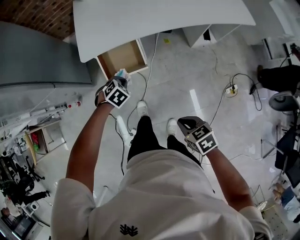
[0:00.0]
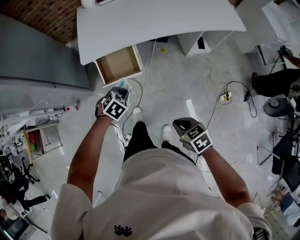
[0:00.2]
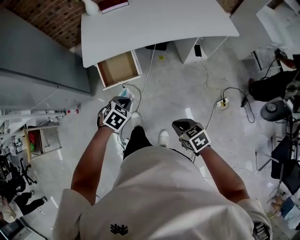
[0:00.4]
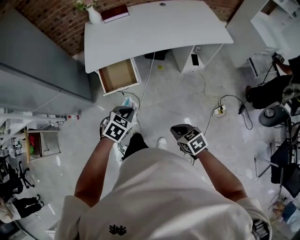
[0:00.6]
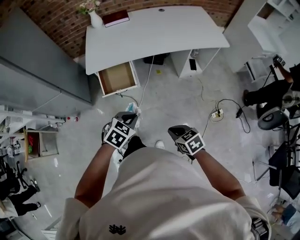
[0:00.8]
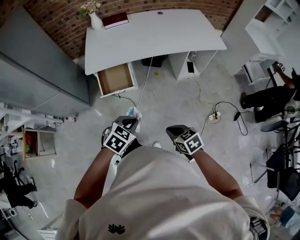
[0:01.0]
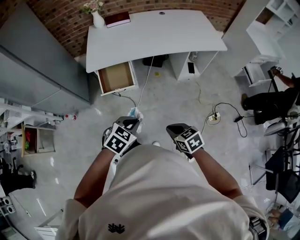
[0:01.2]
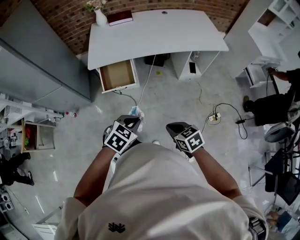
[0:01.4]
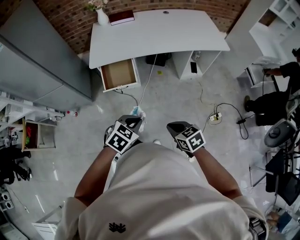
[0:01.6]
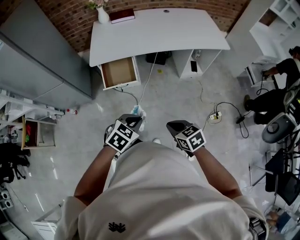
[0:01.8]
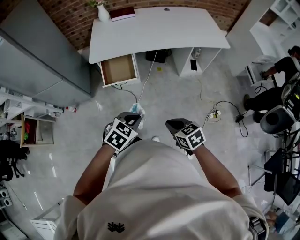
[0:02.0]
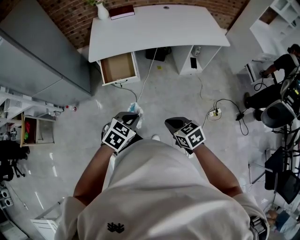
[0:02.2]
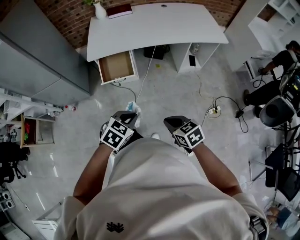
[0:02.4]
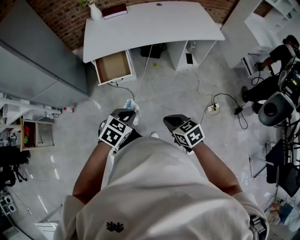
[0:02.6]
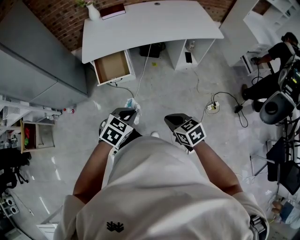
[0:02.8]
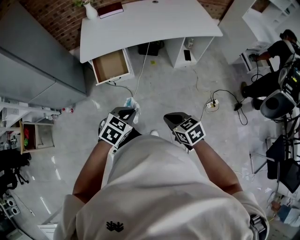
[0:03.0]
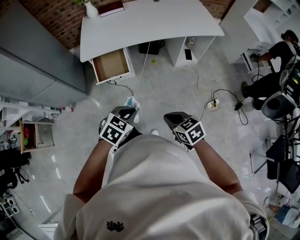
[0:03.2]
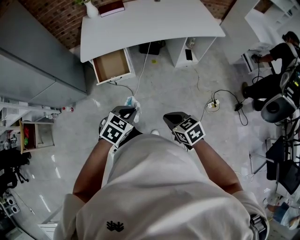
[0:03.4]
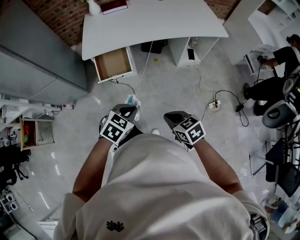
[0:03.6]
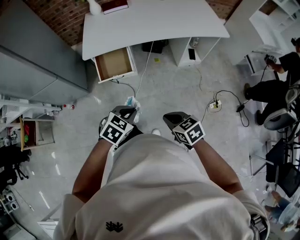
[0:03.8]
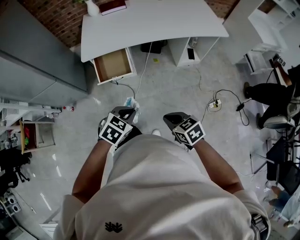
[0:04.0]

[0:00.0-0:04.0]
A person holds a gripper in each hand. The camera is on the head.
0:00.0 to 0:01.4: The right gripper is displaced backward, to the right and upward by about 20 cm, while the left gripper heads backward, upward and to the right, covering some 40 cm, and changes its angle by approximately 30 degrees.
0:01.4 to 0:02.6: The grippers stay close to where they were, moving slightly.
0:02.6 to 0:04.0: The right gripper ends up approximately 5 cm from where it was; the left gripper is displaced forward by approximately 5 cm.

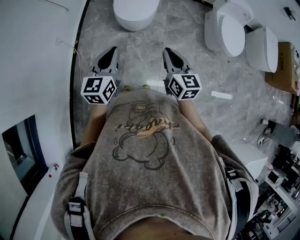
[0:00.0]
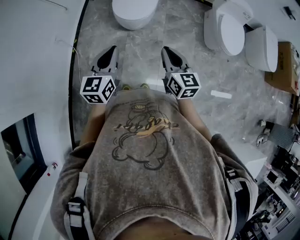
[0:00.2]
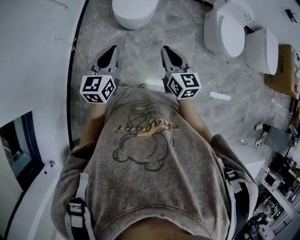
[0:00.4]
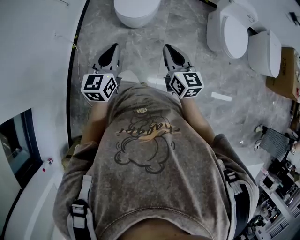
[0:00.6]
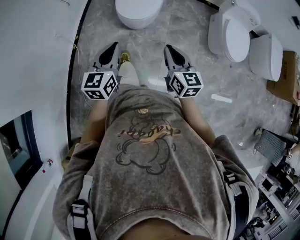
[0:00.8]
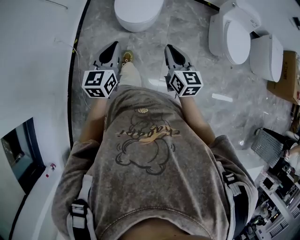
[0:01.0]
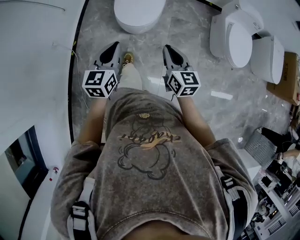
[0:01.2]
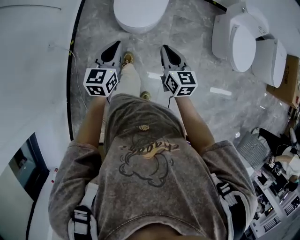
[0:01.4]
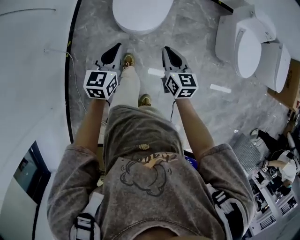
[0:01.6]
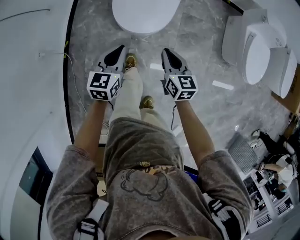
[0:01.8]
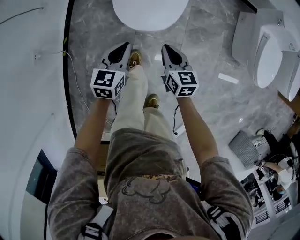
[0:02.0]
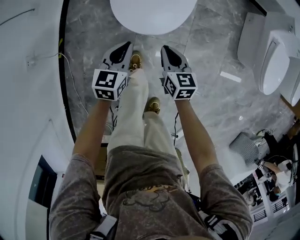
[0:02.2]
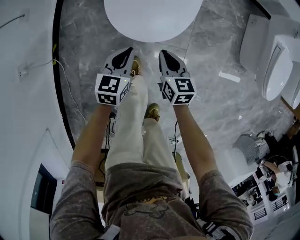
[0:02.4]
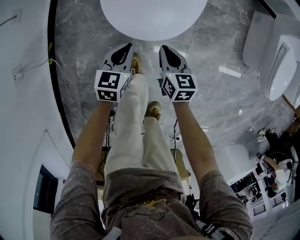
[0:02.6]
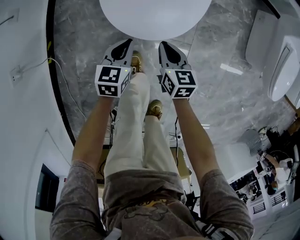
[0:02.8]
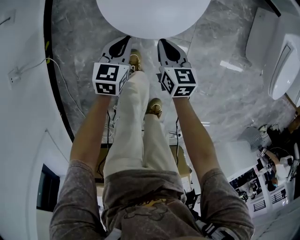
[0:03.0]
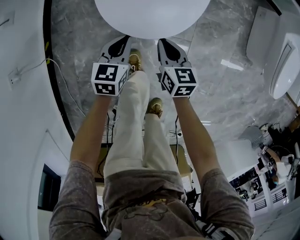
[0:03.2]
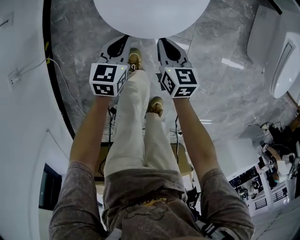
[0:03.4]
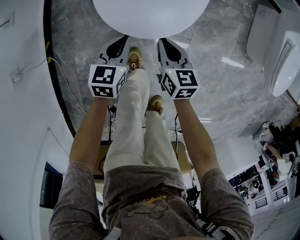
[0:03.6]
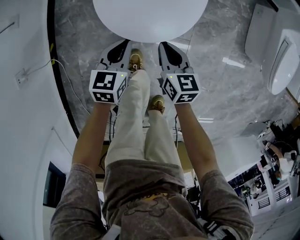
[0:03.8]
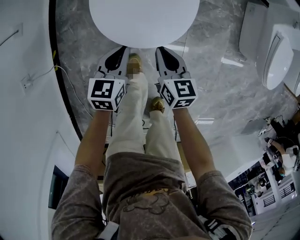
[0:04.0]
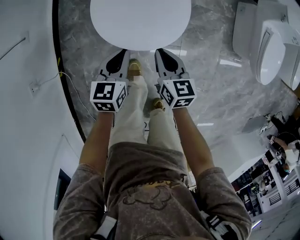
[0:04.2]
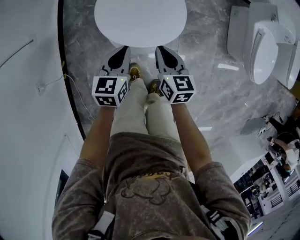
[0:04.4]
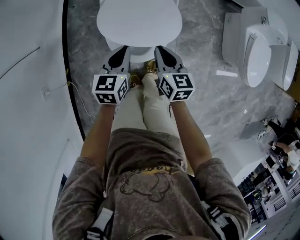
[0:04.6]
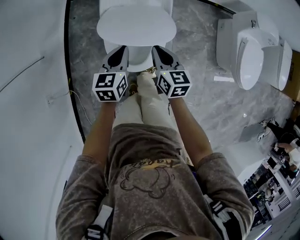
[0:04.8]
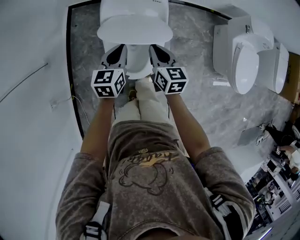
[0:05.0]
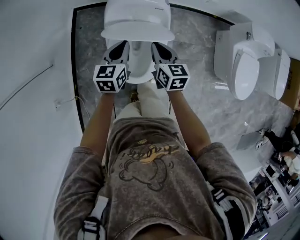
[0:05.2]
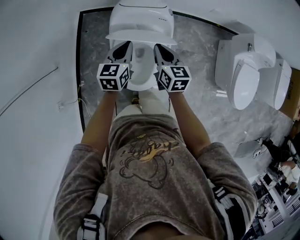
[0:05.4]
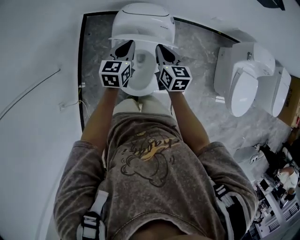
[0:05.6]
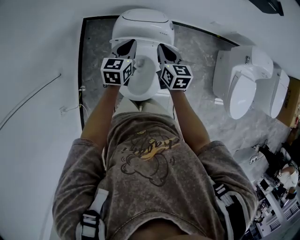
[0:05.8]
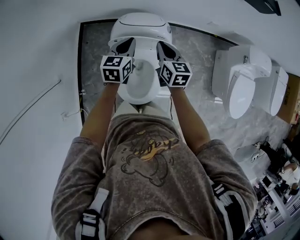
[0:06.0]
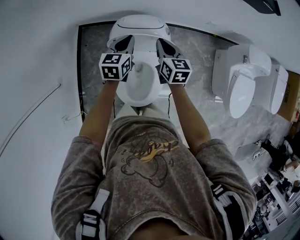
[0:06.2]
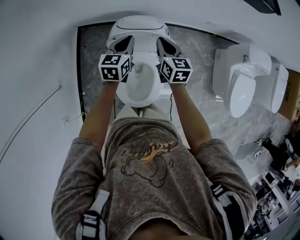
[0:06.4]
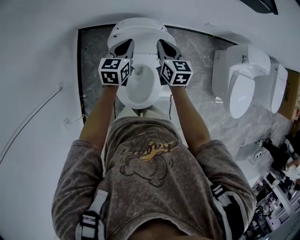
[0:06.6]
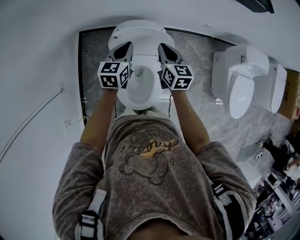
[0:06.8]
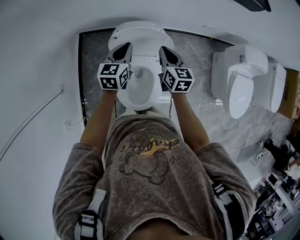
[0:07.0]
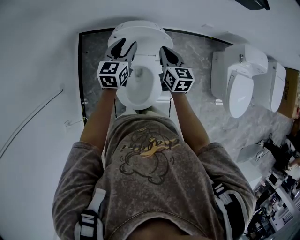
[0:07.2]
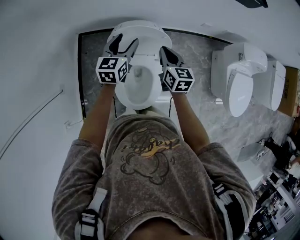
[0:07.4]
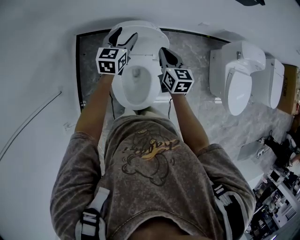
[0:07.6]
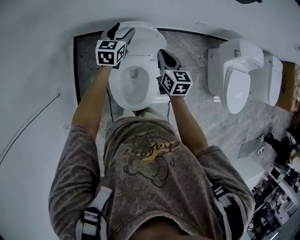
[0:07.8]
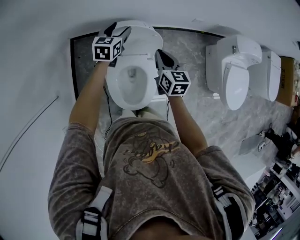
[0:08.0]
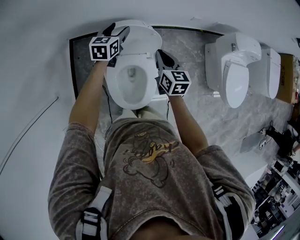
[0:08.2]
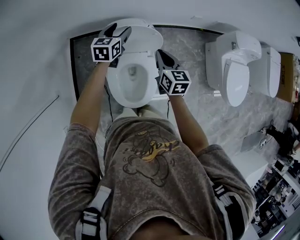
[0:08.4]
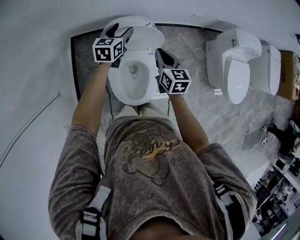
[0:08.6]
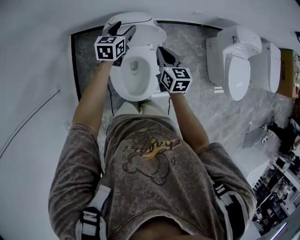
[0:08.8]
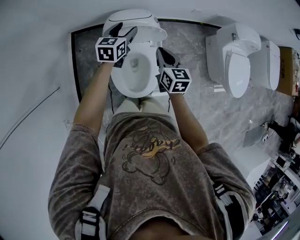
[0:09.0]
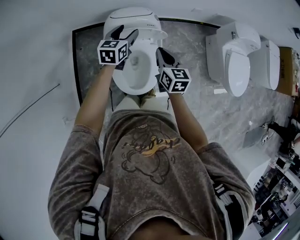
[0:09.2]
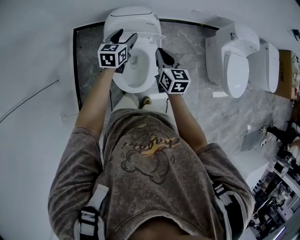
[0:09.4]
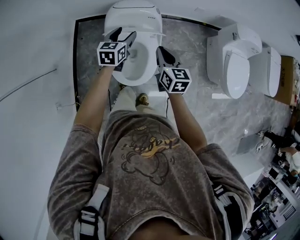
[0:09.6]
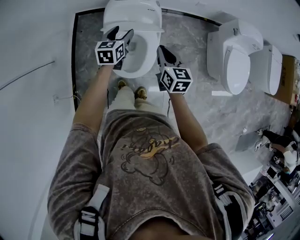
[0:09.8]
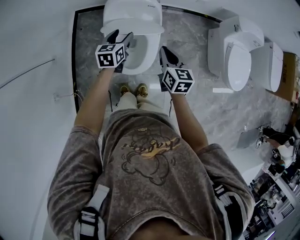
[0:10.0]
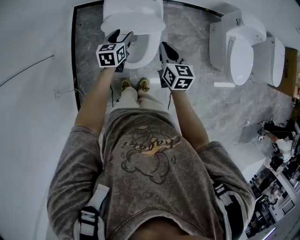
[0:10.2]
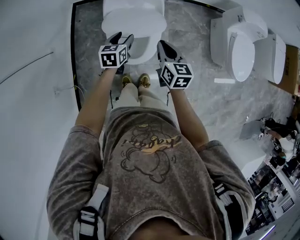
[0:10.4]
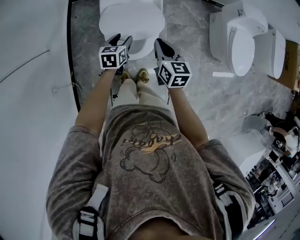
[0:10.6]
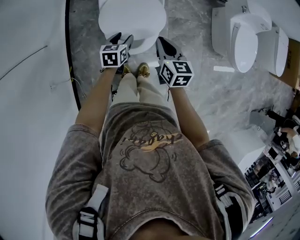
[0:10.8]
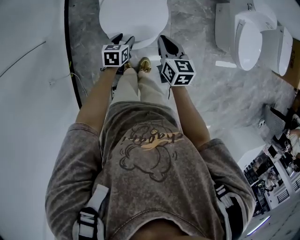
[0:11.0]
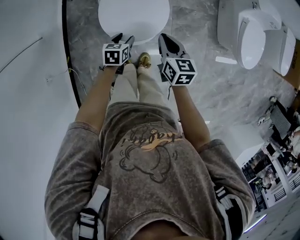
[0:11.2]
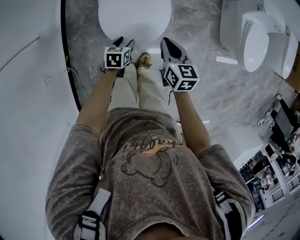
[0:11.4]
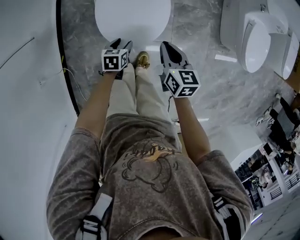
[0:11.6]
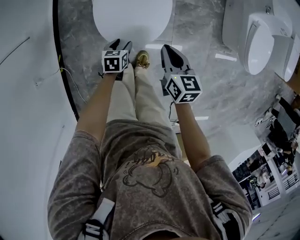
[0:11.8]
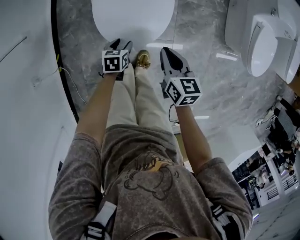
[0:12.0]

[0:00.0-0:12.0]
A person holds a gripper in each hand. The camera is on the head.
0:00.0 to 0:01.6: The grippers both shift forward and downward by approximately 30 cm.
0:01.6 to 0:03.0: The two grippers go about 35 cm downward.
0:03.0 to 0:04.4: The grippers both shift upward by roughly 25 cm.
0:04.4 to 0:06.0: The grippers both shift forward and upward by approximately 40 cm.
0:06.0 to 0:07.6: The right gripper shifts by approximately 5 cm. Meanwhile the left gripper is displaced forward by about 5 cm, and opens.
0:07.6 to 0:09.0: The right gripper is displaced backward by roughly 10 cm, while the left gripper goes approximately 5 cm backward.
0:09.0 to 0:10.4: The left gripper is displaced backward and downward by about 25 cm. The right gripper travels backward by approximately 15 cm.
0:10.4 to 0:12.0: The right gripper goes approximately 20 cm downward and backward; the left gripper is displaced downward and backward by approximately 30 cm, and turns by about 20 degrees.

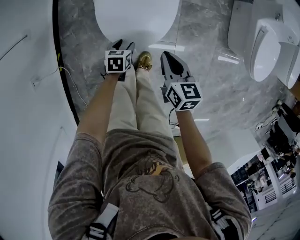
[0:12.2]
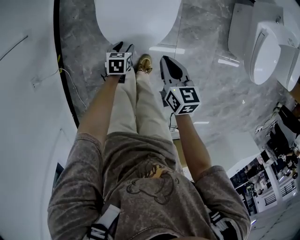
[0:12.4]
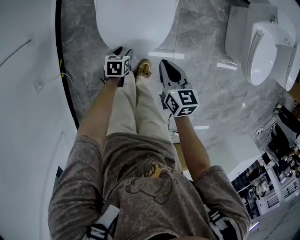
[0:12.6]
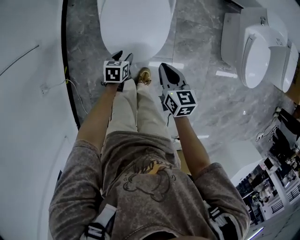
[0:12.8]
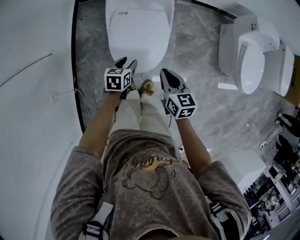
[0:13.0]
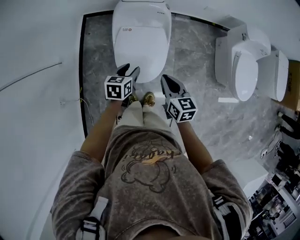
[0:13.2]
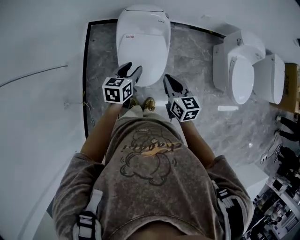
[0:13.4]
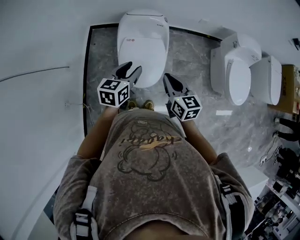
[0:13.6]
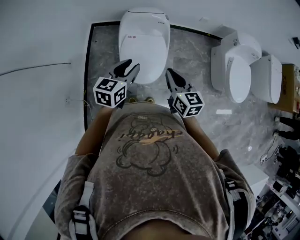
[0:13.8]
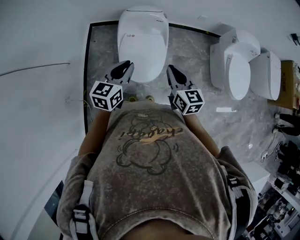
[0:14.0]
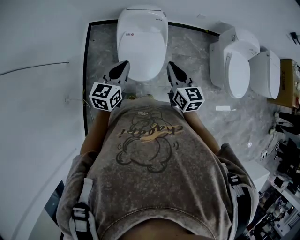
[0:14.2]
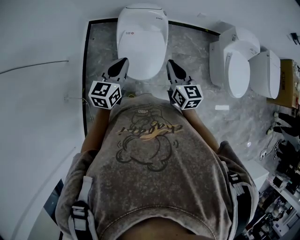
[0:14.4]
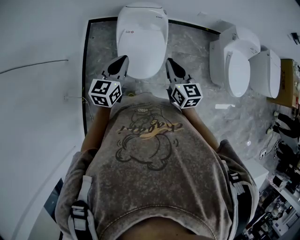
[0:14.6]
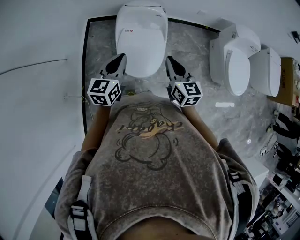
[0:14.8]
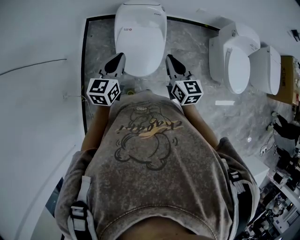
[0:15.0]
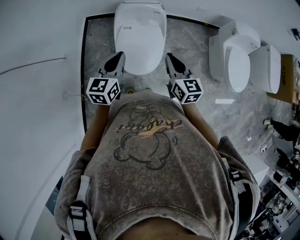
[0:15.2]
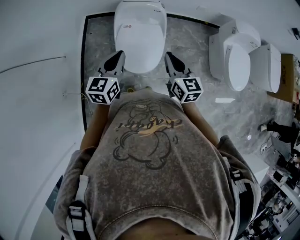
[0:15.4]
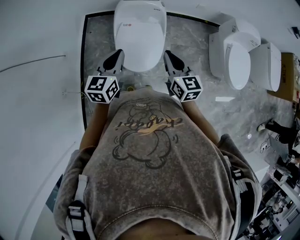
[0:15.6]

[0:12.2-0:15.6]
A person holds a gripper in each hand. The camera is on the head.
0:12.2 to 0:13.8: The left gripper heads upward, covering roughly 50 cm, and tilts its fingers roughly 30 degrees upward, while the right gripper shifts about 30 cm upward, and changes its angle by approximately 20 degrees.
0:13.8 to 0:15.6: The left gripper closes its fingers.

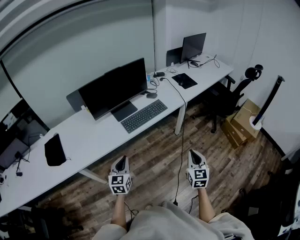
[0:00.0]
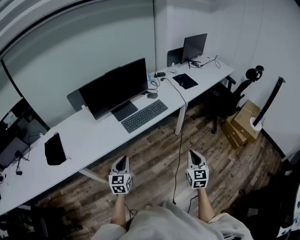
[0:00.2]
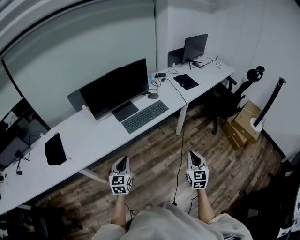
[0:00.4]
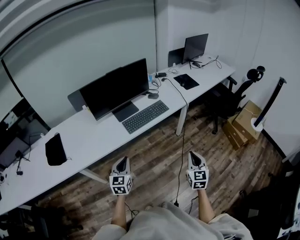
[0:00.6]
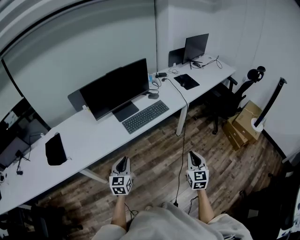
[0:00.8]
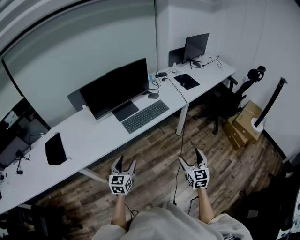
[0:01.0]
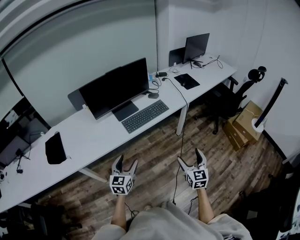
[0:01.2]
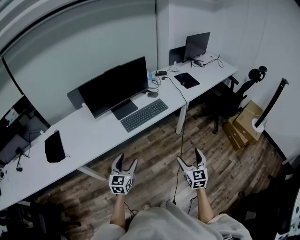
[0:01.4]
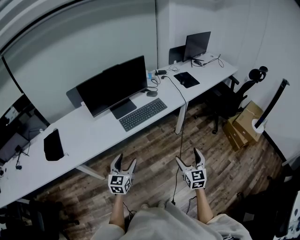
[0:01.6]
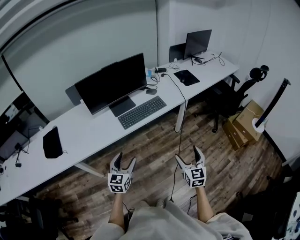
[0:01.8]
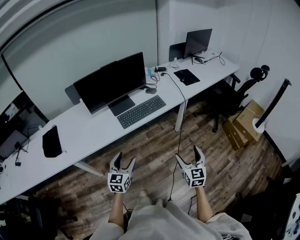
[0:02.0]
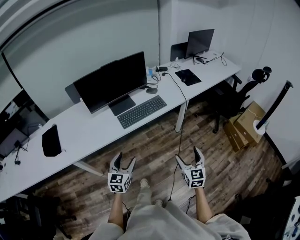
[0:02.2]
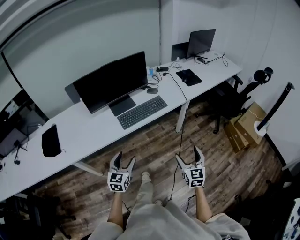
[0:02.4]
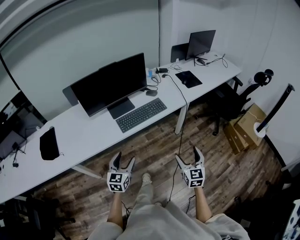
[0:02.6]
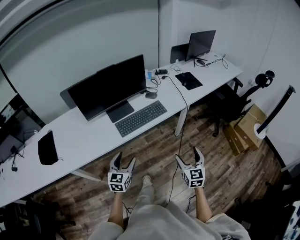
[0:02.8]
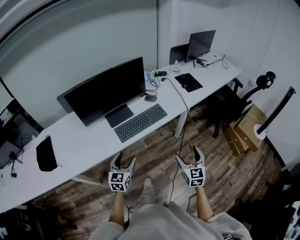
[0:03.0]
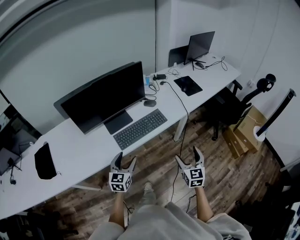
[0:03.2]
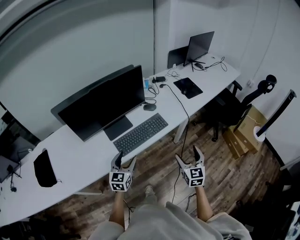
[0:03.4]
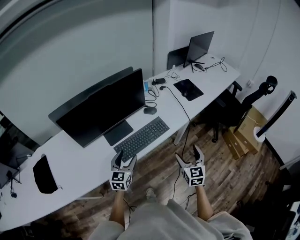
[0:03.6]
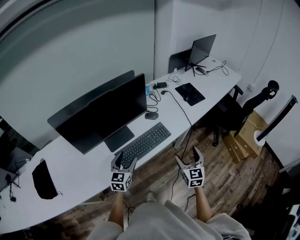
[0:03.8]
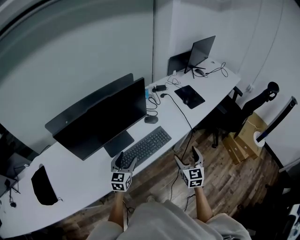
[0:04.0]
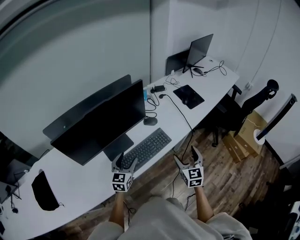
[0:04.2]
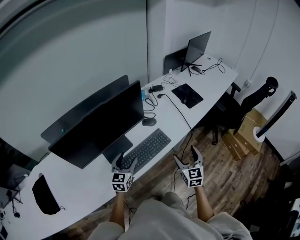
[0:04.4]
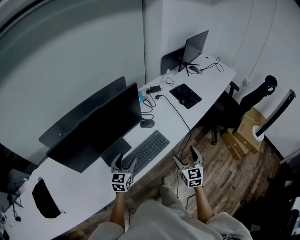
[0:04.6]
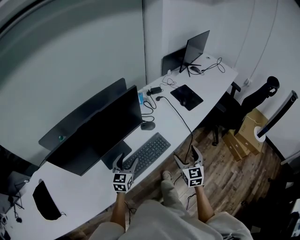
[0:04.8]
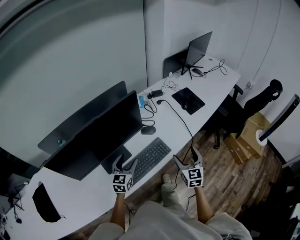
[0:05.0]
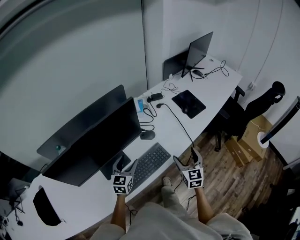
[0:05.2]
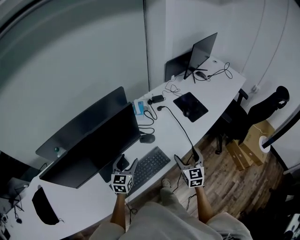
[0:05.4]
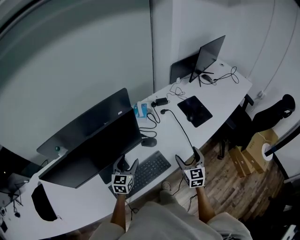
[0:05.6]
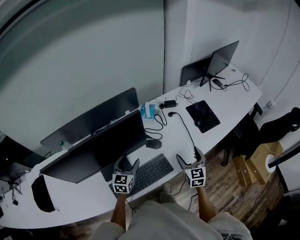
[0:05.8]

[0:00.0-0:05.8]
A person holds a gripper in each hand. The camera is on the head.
0:00.0 to 0:01.4: The left gripper opens up; the right gripper opens its fingers.
0:01.4 to 0:02.8: Both grippers travel together forward, about 10 cm.
0:02.8 to 0:04.4: Both grippers travel together forward, some 30 cm.
0:04.4 to 0:05.8: The grippers both shift forward by roughly 20 cm.
